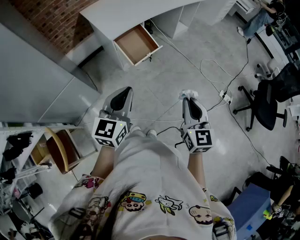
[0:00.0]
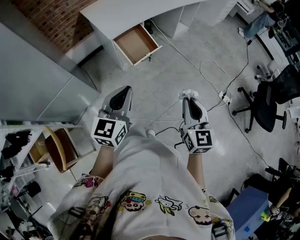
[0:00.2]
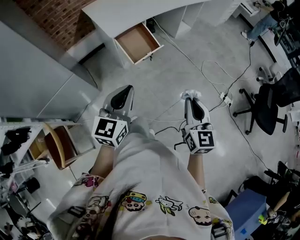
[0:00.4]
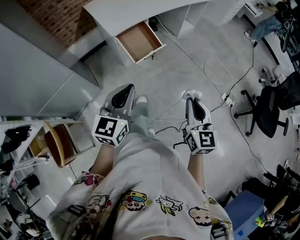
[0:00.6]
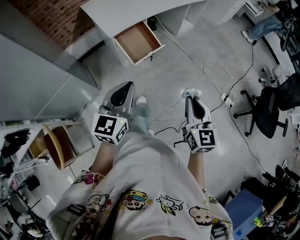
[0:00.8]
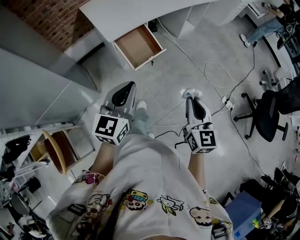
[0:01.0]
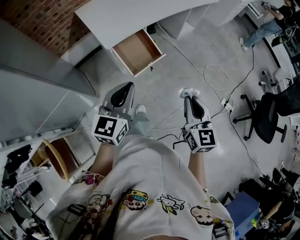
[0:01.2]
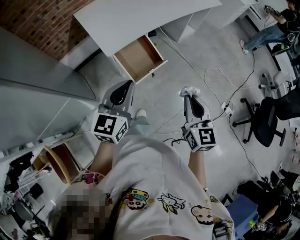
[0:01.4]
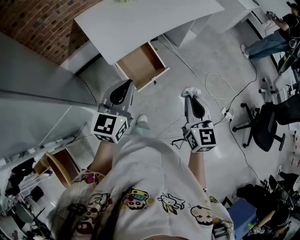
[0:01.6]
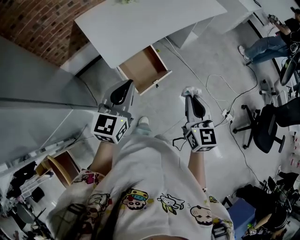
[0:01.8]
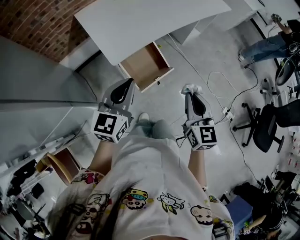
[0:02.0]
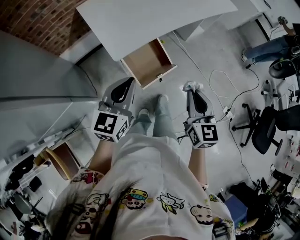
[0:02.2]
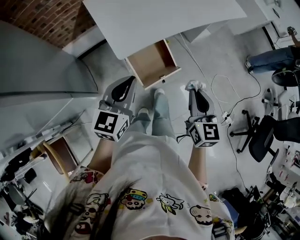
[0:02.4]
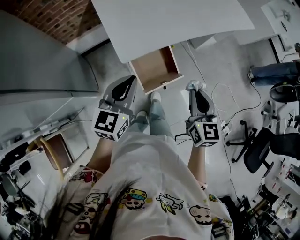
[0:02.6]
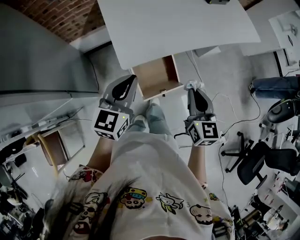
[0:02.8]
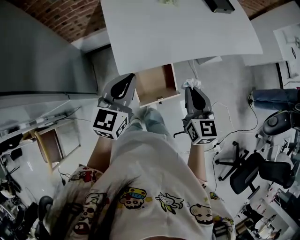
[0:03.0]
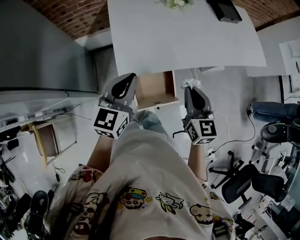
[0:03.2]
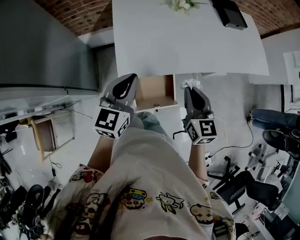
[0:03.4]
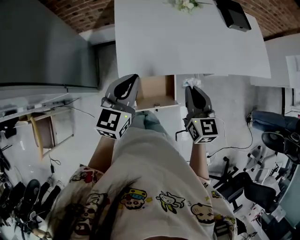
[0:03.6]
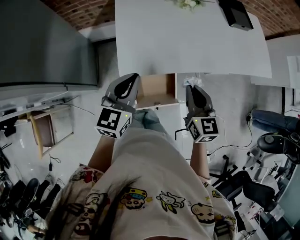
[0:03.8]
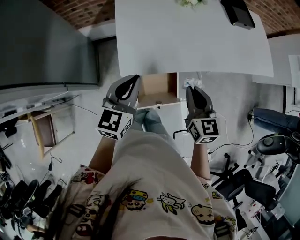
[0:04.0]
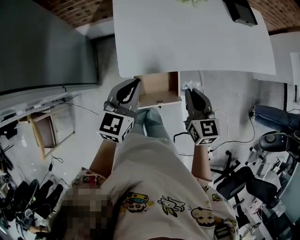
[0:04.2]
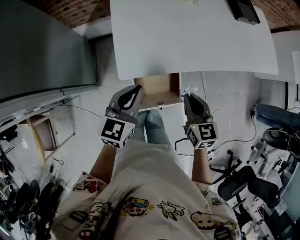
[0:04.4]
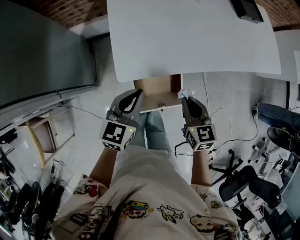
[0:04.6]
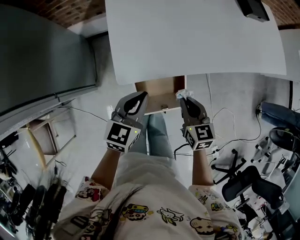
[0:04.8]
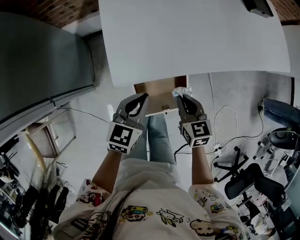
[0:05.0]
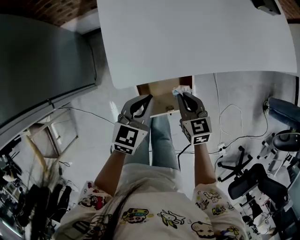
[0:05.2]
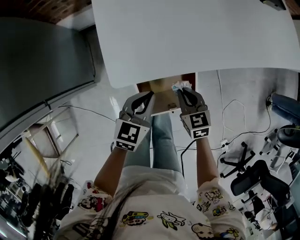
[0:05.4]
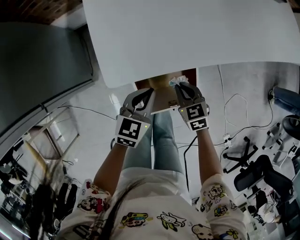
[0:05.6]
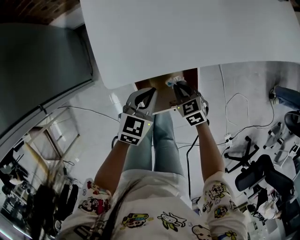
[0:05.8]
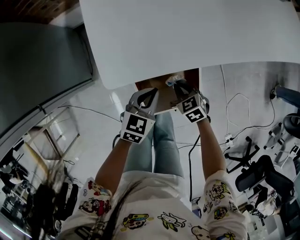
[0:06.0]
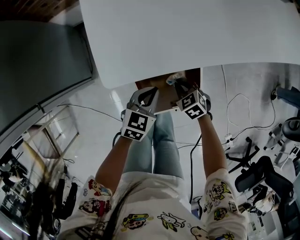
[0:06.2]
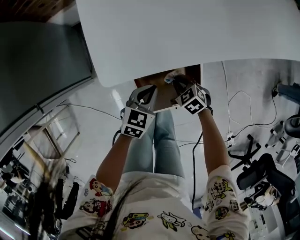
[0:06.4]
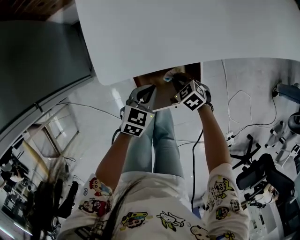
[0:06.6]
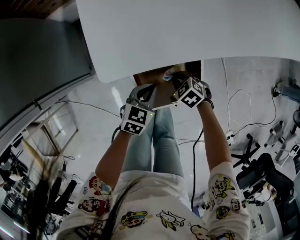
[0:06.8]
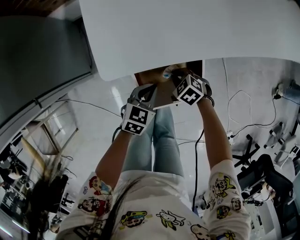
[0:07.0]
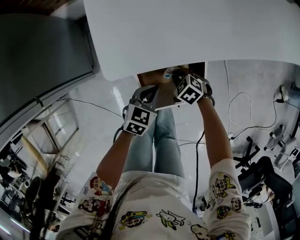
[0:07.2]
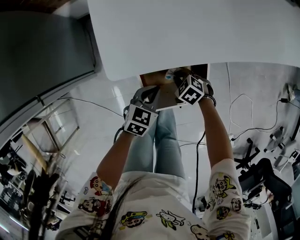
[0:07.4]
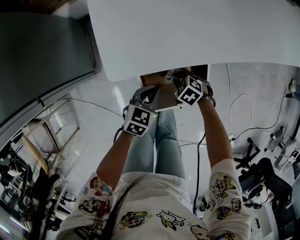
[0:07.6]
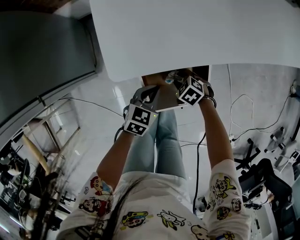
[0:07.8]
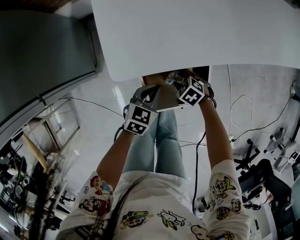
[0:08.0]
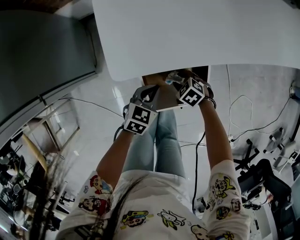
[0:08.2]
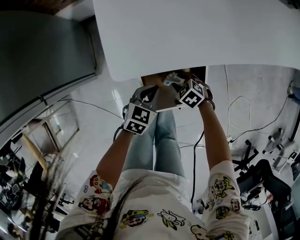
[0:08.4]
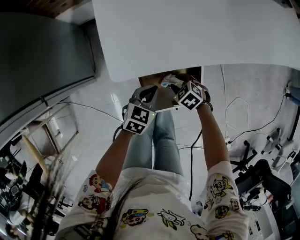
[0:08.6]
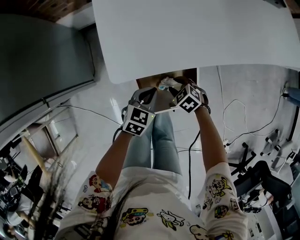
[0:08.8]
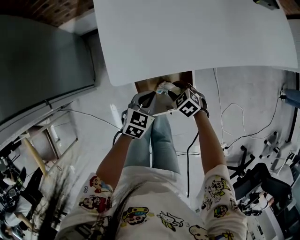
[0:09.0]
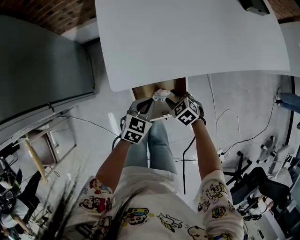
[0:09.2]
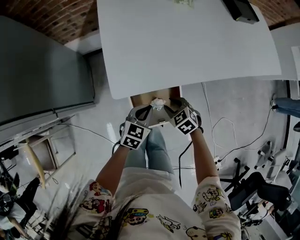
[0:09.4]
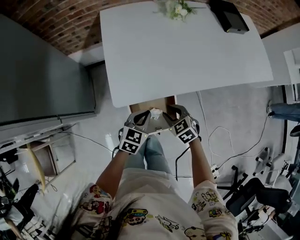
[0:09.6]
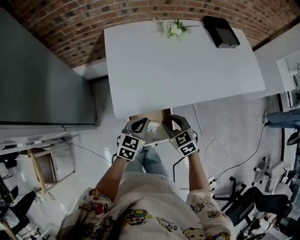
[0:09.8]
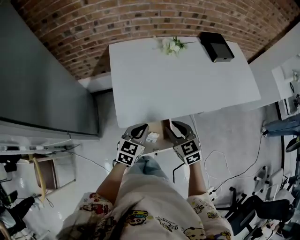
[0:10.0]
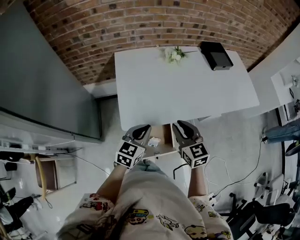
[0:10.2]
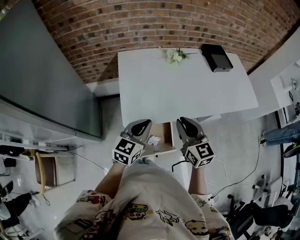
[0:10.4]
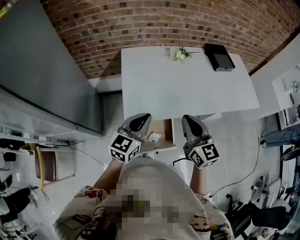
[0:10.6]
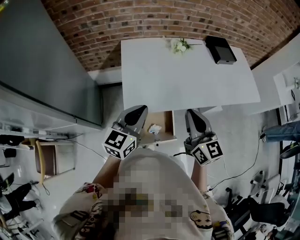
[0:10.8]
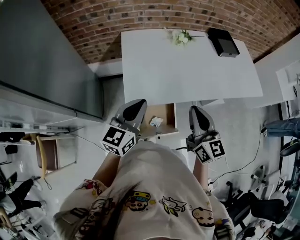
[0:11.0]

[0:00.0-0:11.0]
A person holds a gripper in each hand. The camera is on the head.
0:00.0 to 0:01.6: The two grippers go approximately 25 cm forward.
0:01.6 to 0:03.2: The grippers both shift forward by approximately 25 cm. The left gripper rotates some 20 degrees; the right gripper turns by approximately 30 degrees.
0:03.2 to 0:04.8: Both grippers travel together downward, roughly 15 cm. The right gripper rotates approximately 20 degrees.
0:04.8 to 0:06.2: Both grippers move downward, approximately 25 cm. The right gripper rotates approximately 40 degrees.
0:06.2 to 0:07.8: The right gripper changes place by about 5 cm, changes its angle by approximately 20 degrees, and opens.
0:07.8 to 0:09.4: Both grippers travel together upward, about 15 cm. The right gripper swivels roughly 20 degrees.
0:09.4 to 0:11.0: Both grippers move upward, approximately 40 cm. The right gripper angles its fingers upward, by about 50 degrees, and closes its fingers. Meanwhile the left gripper points its fingers approximately 30 degrees further upward.

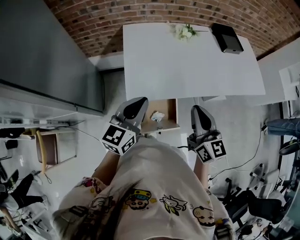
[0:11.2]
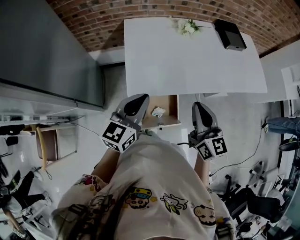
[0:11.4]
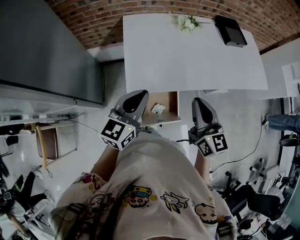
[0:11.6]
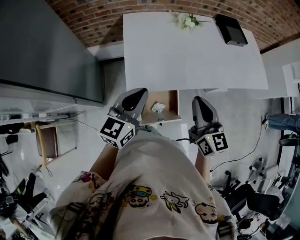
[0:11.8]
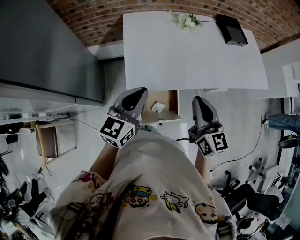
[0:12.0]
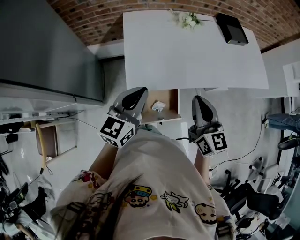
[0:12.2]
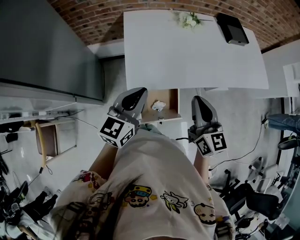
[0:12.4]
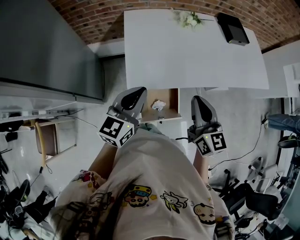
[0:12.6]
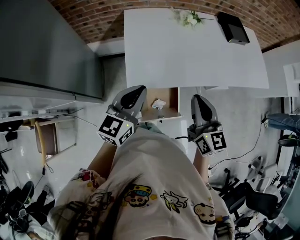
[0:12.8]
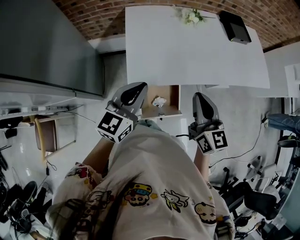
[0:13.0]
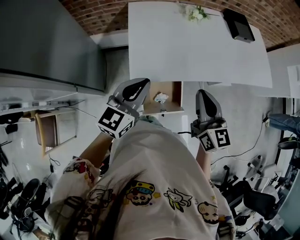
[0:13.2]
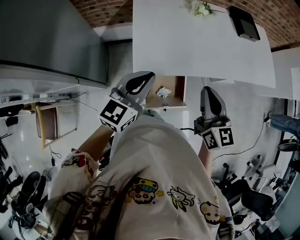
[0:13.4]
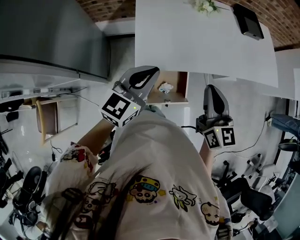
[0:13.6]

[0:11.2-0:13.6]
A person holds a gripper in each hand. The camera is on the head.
0:11.2 to 0:13.6: The grippers stay close to where they were, moving slightly.

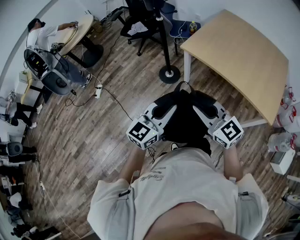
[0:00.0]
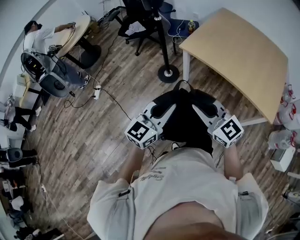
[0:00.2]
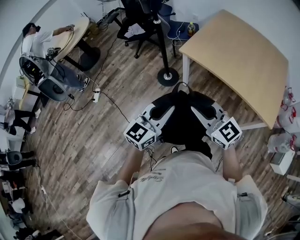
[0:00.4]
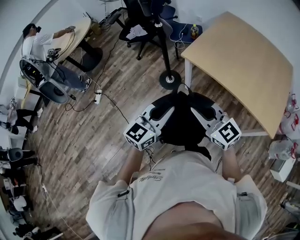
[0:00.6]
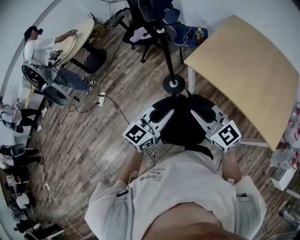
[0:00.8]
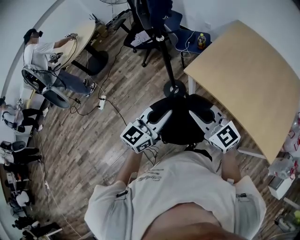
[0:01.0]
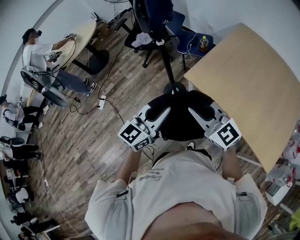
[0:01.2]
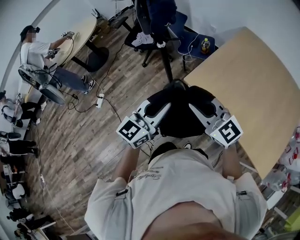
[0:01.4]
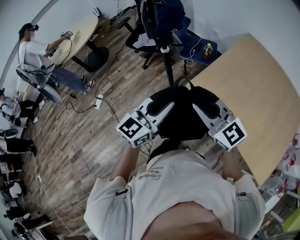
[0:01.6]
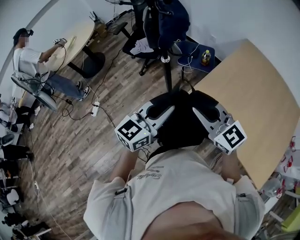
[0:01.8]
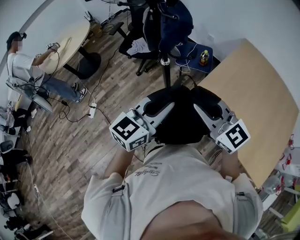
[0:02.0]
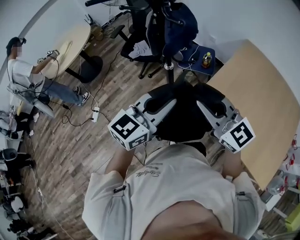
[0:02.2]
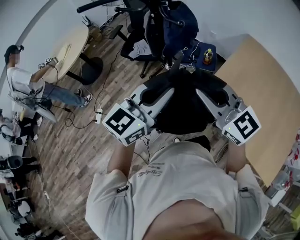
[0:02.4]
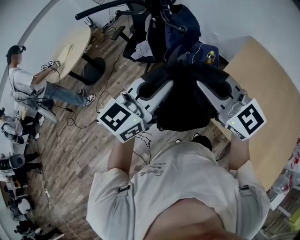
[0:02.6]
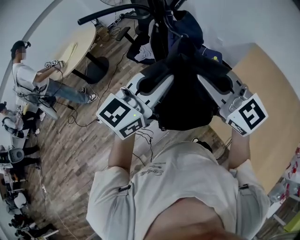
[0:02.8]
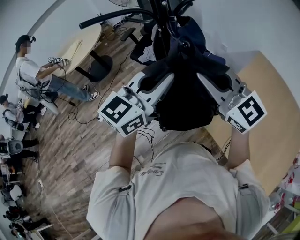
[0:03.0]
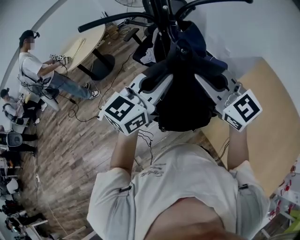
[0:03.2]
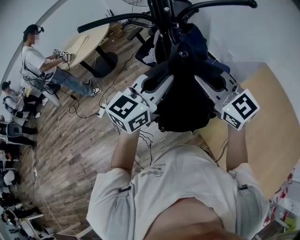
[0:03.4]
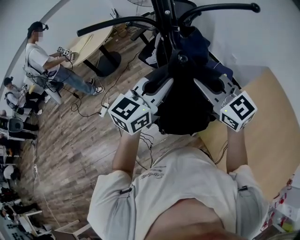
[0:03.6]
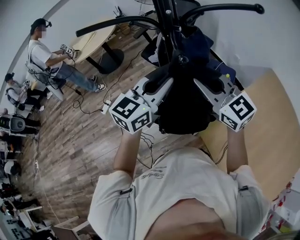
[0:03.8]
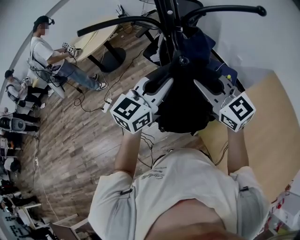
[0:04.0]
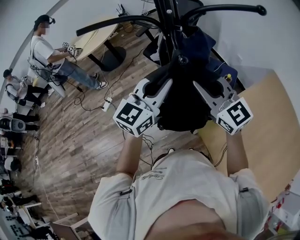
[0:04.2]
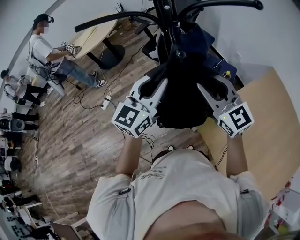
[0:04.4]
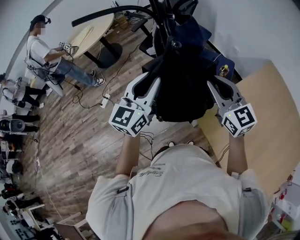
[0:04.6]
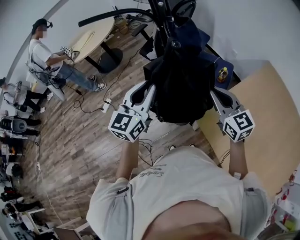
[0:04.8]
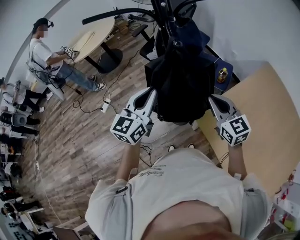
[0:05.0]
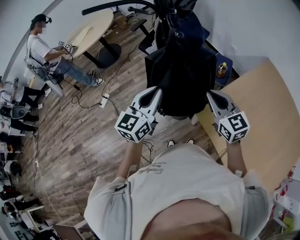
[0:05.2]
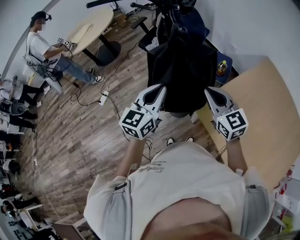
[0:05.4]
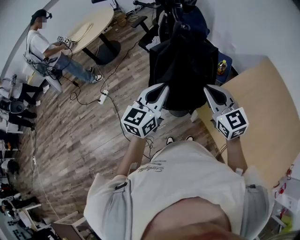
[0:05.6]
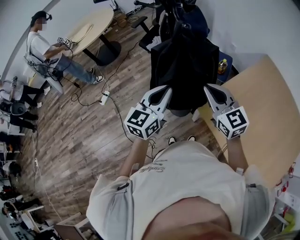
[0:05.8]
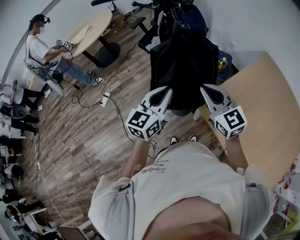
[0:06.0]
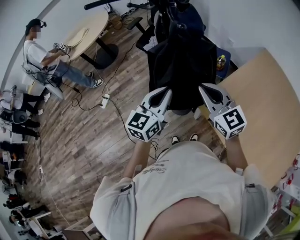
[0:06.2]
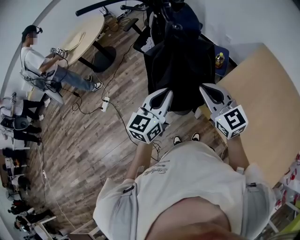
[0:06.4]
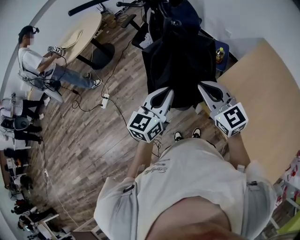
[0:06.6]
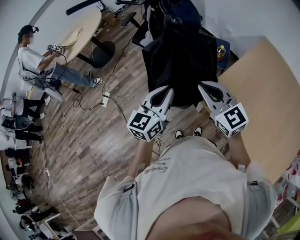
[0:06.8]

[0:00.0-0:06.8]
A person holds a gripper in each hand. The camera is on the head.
0:00.0 to 0:01.4: Both grippers move forward, roughly 35 cm.
0:01.4 to 0:02.8: Both grippers move forward and upward, about 30 cm.
0:02.8 to 0:04.0: Both grippers move forward and downward, roughly 10 cm.
0:04.0 to 0:05.4: The right gripper goes approximately 15 cm downward and backward, and rotates about 20 degrees. The left gripper shifts roughly 10 cm backward and downward.
0:05.4 to 0:06.8: The grippers stay close to where they were, moving slightly.

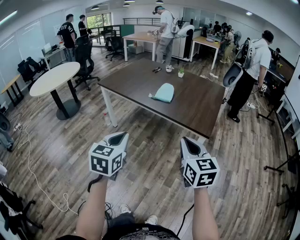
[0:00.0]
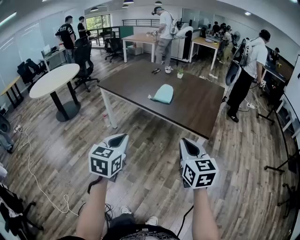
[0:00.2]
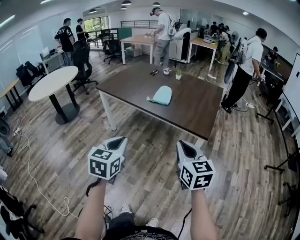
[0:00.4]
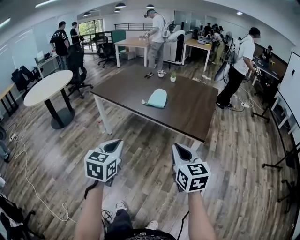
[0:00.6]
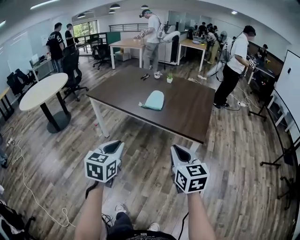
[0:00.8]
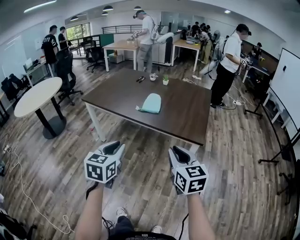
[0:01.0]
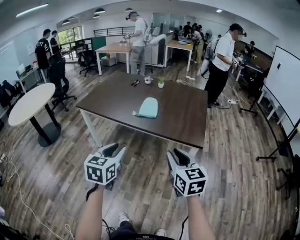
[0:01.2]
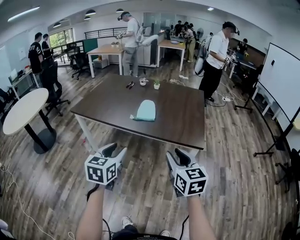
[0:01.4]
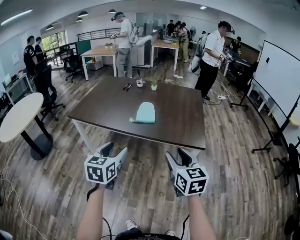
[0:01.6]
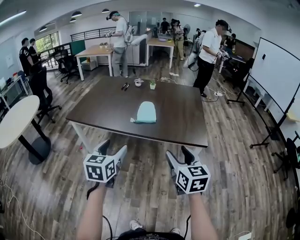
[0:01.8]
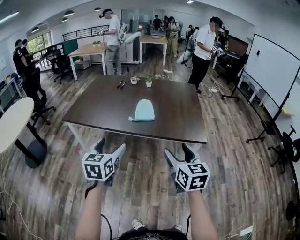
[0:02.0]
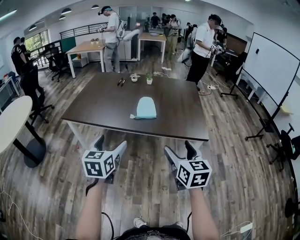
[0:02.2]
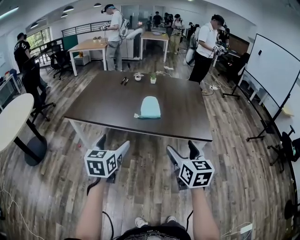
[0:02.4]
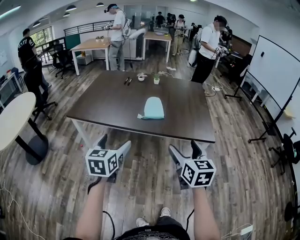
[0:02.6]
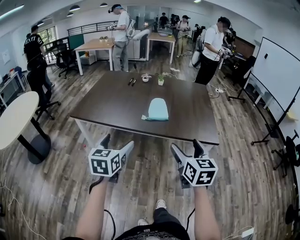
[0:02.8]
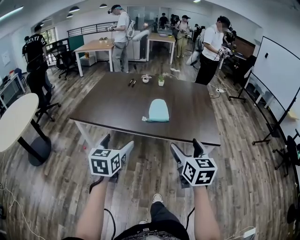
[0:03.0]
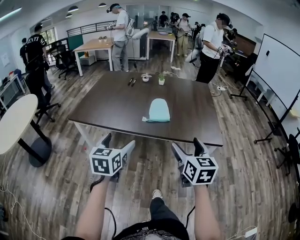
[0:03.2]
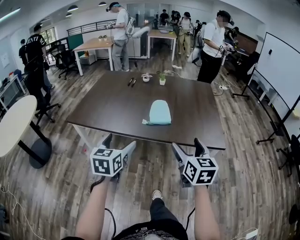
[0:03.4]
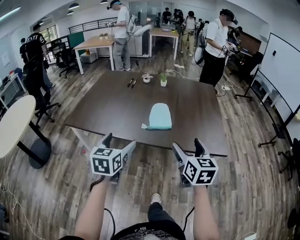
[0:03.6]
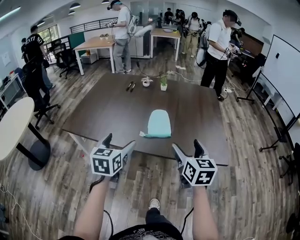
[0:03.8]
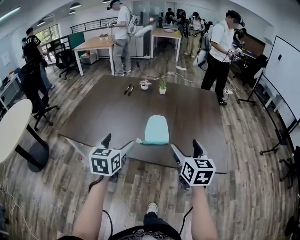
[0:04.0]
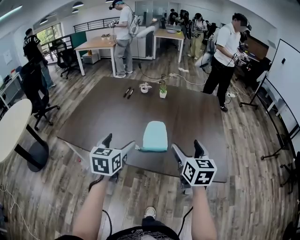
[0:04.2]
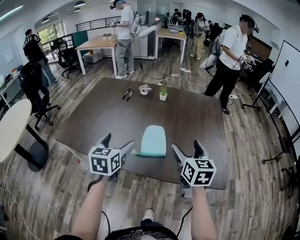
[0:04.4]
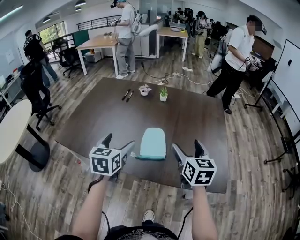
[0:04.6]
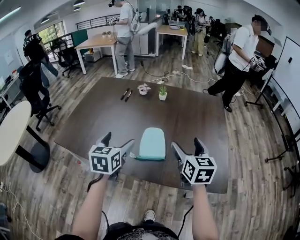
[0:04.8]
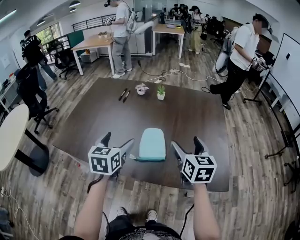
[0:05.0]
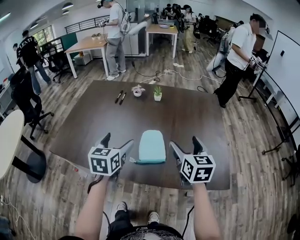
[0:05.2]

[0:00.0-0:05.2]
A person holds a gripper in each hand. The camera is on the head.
0:00.0 to 0:01.8: The two grippers go approximately 20 cm forward and to the left. The left gripper opens up; the right gripper rotates about 20 degrees, and opens up.
0:01.8 to 0:03.4: The grippers both shift forward and to the left by about 15 cm. The right gripper opens.
0:03.4 to 0:05.2: Both grippers move forward, approximately 30 cm.
